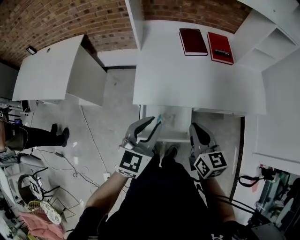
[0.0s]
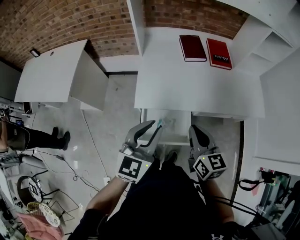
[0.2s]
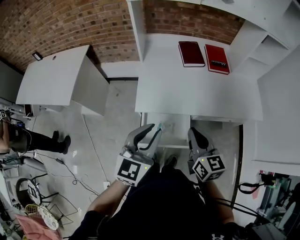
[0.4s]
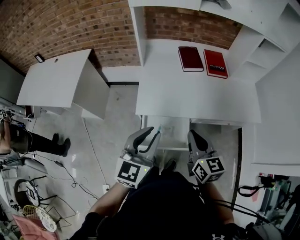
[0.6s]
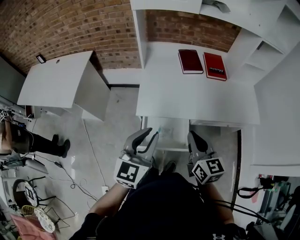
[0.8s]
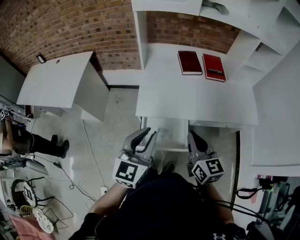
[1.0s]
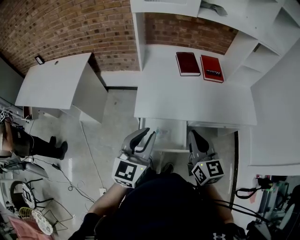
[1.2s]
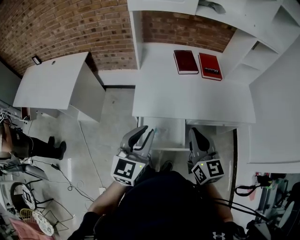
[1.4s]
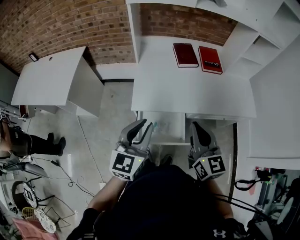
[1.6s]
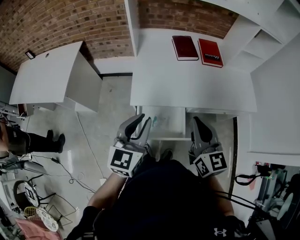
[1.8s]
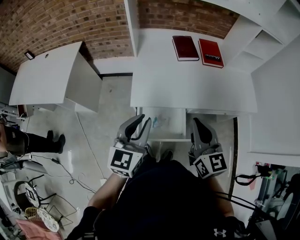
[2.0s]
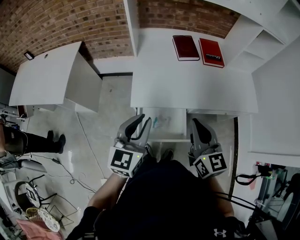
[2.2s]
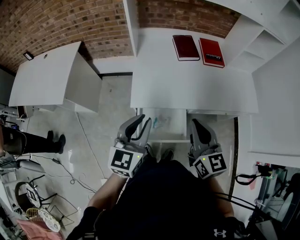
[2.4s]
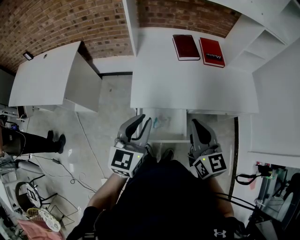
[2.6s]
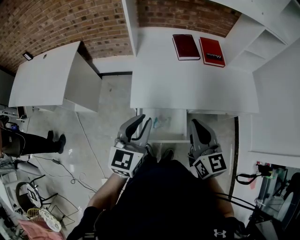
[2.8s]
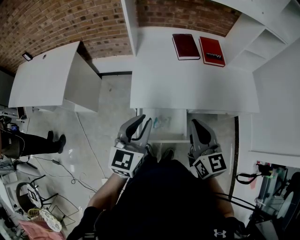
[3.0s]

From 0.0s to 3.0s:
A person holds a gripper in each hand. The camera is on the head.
From 0.0s to 1.6s: The right gripper goes about 10 cm upward. Meanwhile the left gripper shifts approximately 5 cm upward.
From 1.6s to 3.0s: The grippers stay close to where they were, moving slightly.

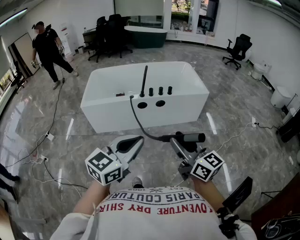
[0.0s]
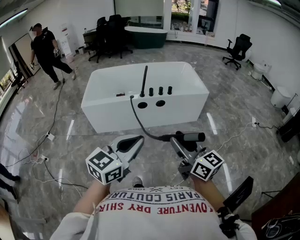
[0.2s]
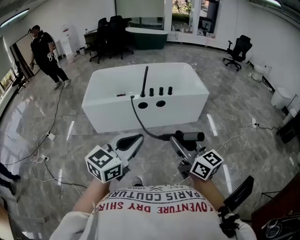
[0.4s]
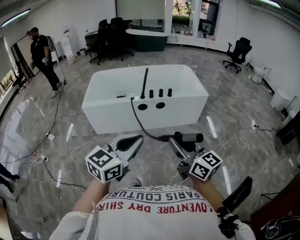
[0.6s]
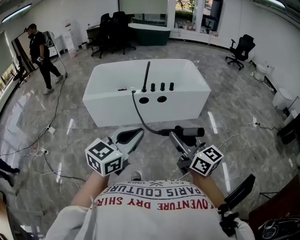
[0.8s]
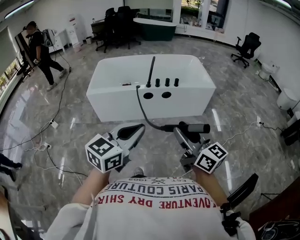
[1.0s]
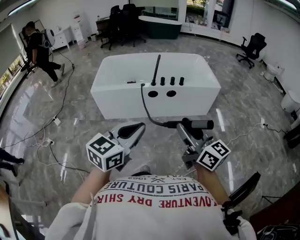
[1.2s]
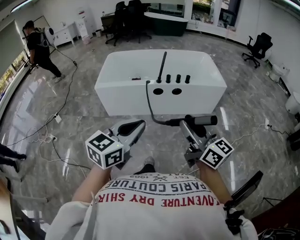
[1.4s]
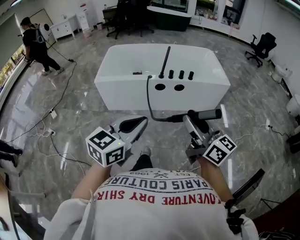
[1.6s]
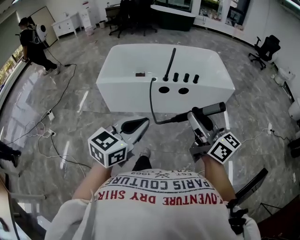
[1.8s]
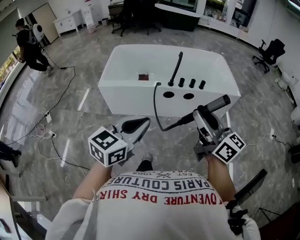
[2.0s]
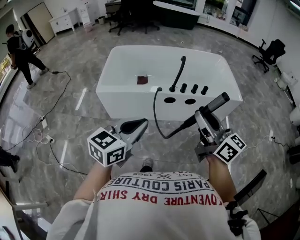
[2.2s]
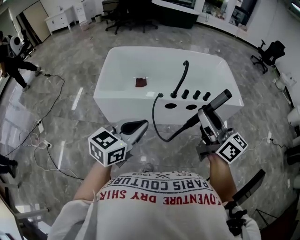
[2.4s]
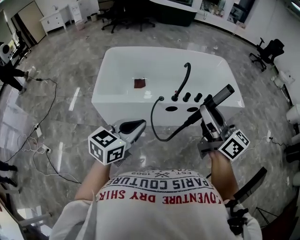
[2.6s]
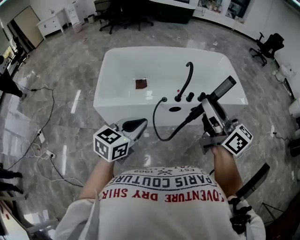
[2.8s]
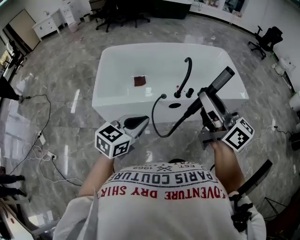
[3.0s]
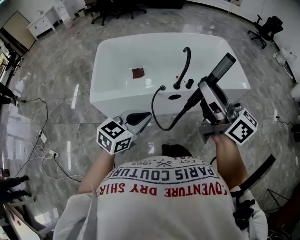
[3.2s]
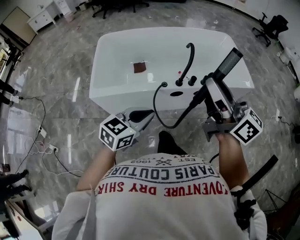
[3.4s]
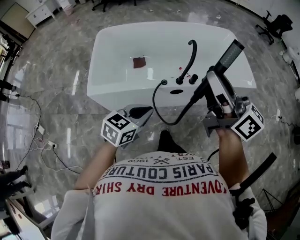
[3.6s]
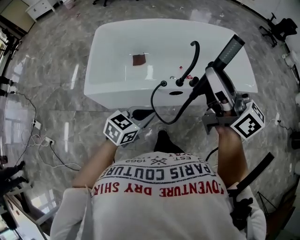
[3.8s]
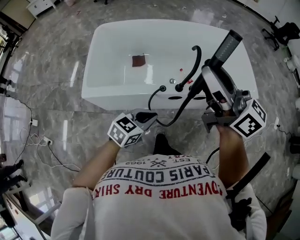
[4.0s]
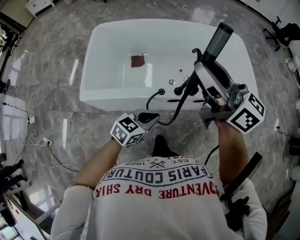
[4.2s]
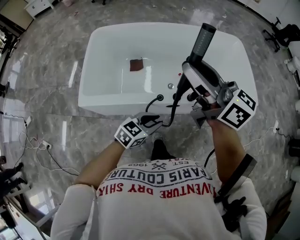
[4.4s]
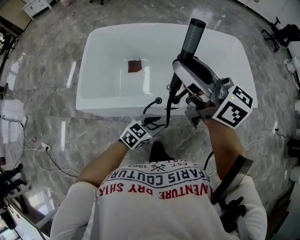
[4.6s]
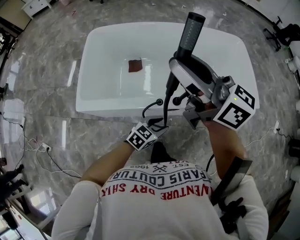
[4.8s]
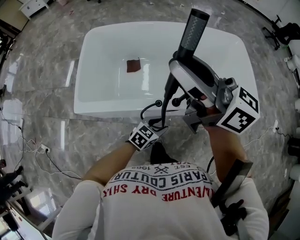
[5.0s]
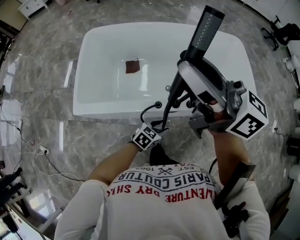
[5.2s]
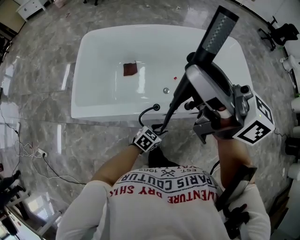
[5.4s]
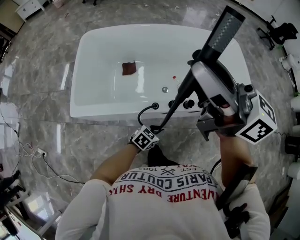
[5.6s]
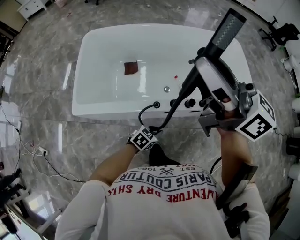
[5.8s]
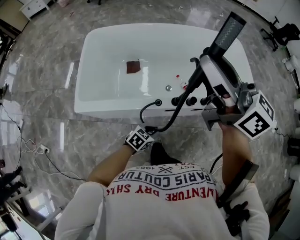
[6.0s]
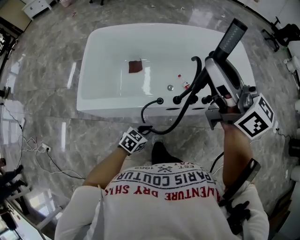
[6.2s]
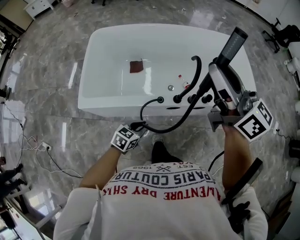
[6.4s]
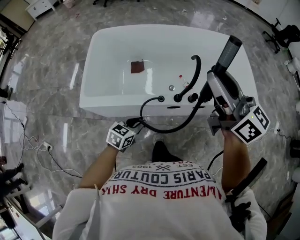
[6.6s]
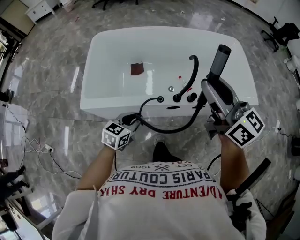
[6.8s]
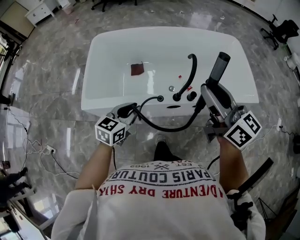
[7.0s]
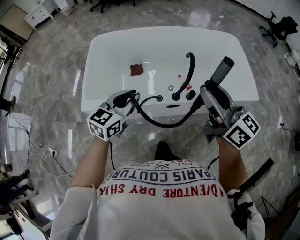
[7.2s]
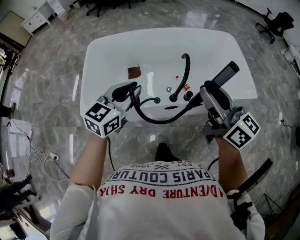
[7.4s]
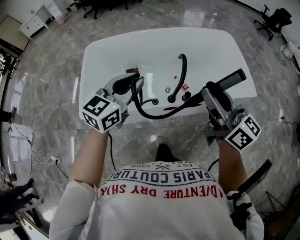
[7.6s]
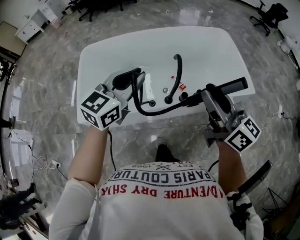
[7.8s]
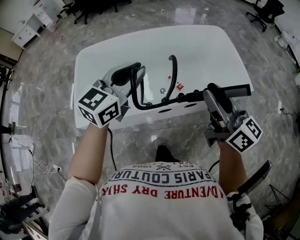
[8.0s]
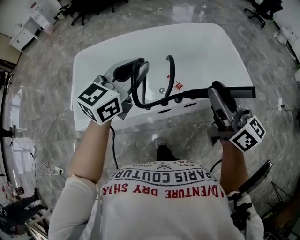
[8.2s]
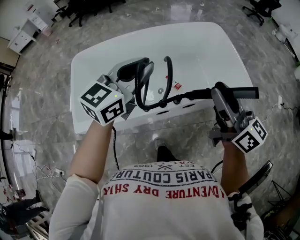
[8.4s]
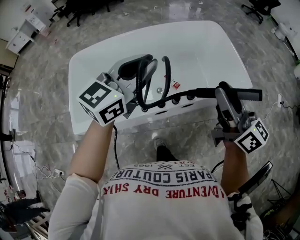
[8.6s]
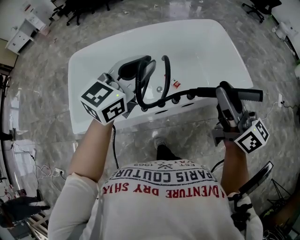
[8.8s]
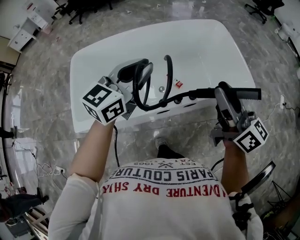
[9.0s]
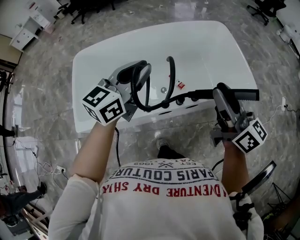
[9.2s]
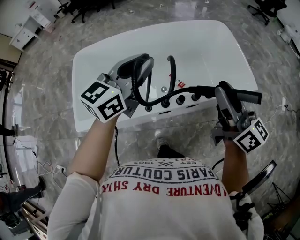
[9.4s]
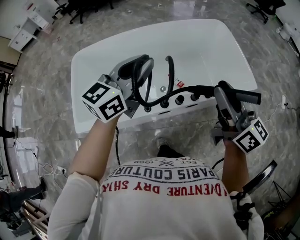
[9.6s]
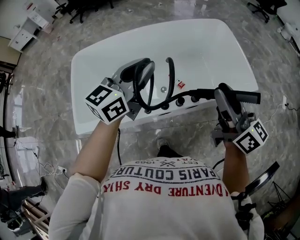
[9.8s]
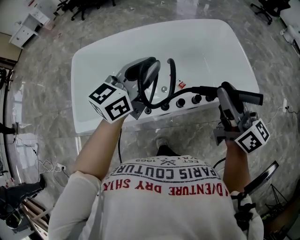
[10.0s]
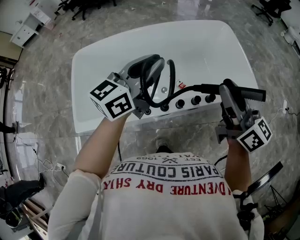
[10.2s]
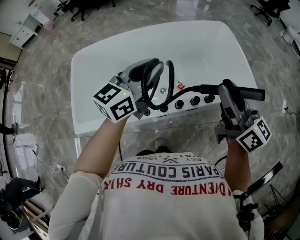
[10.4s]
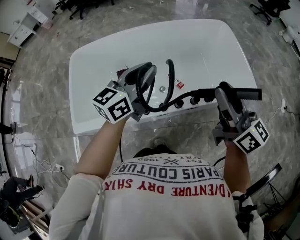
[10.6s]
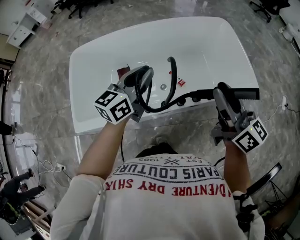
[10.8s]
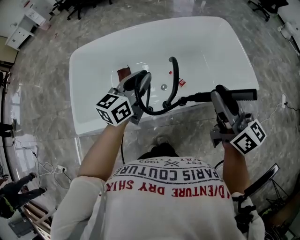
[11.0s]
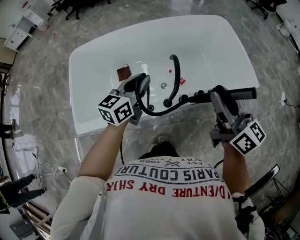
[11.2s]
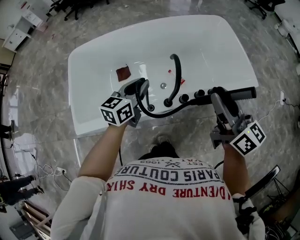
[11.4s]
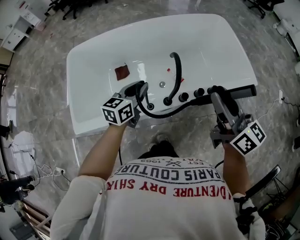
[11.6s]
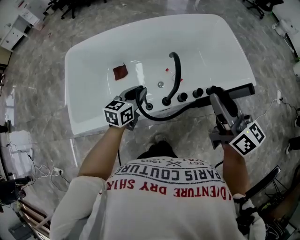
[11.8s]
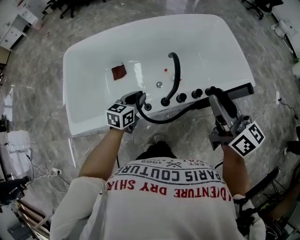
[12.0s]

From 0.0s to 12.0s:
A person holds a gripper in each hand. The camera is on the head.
From 0.0s to 1.6s: The left gripper moves about 5 cm.
From 1.6s to 3.0s: Both grippers move forward and to the left, approximately 35 cm.
From 3.0s to 4.4s: The left gripper heads downward, forward and to the right, covering roughly 25 cm, and opens its fingers. Meanwhile the right gripper shifts some 25 cm forward.
From 4.4s to 6.0s: The right gripper travels upward by roughly 5 cm. The left gripper moves downward, roughly 15 cm, and opens, then closes once more.
From 6.0s to 7.6s: The left gripper is displaced upward and forward by about 40 cm, and points its fingers approximately 30 degrees further upward. The right gripper heads to the right, downward and backward, covering approximately 15 cm.
From 7.6s to 9.0s: The right gripper is displaced to the right and forward by roughly 10 cm. Meanwhile the left gripper travels forward and to the right by approximately 15 cm.
From 9.0s to 10.4s: There are only small adjustments of the grippers.
From 10.4s to 12.0s: The right gripper moves approximately 5 cm; the left gripper is displaced downward by roughly 25 cm, and changes its angle by some 30 degrees.

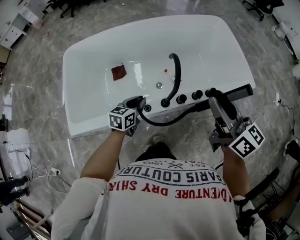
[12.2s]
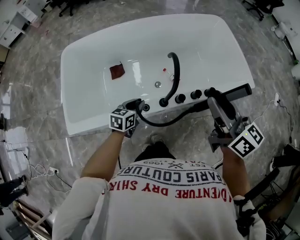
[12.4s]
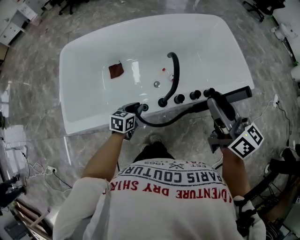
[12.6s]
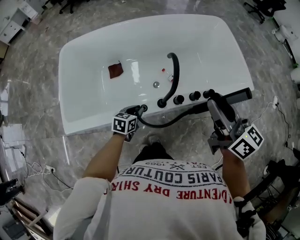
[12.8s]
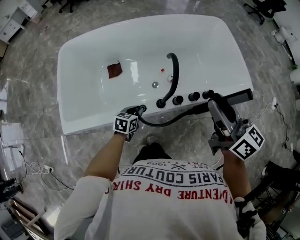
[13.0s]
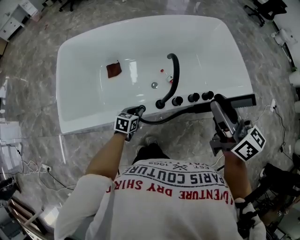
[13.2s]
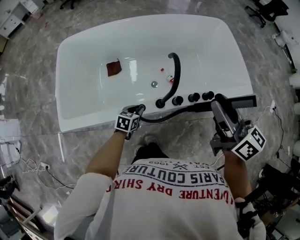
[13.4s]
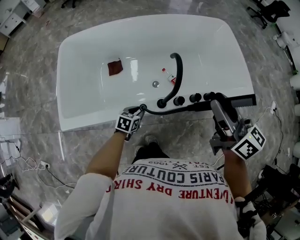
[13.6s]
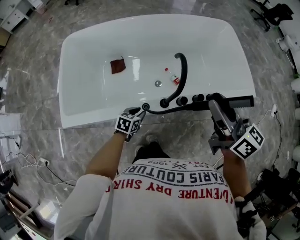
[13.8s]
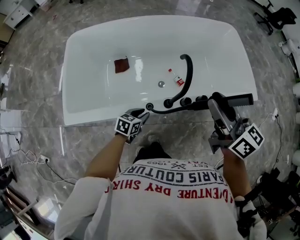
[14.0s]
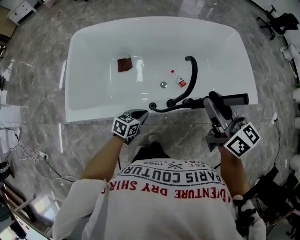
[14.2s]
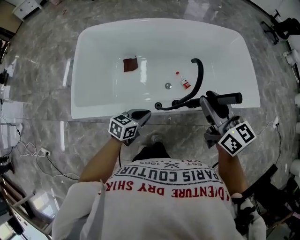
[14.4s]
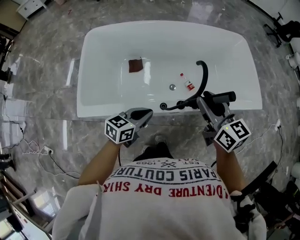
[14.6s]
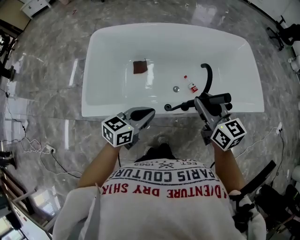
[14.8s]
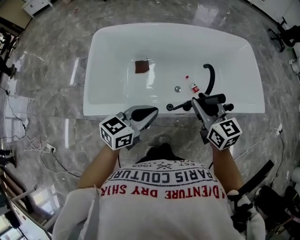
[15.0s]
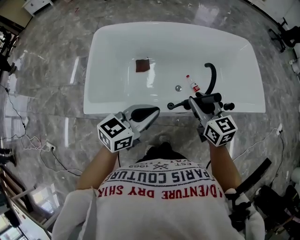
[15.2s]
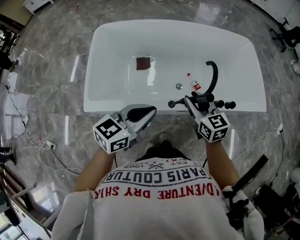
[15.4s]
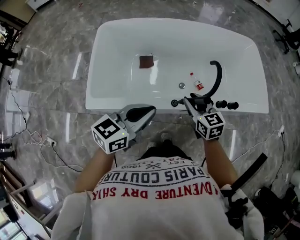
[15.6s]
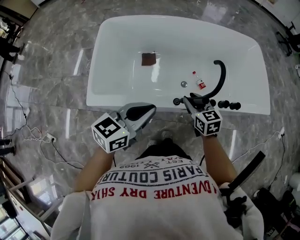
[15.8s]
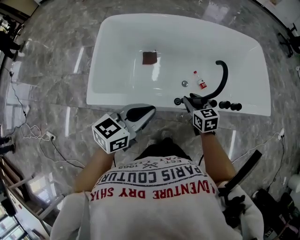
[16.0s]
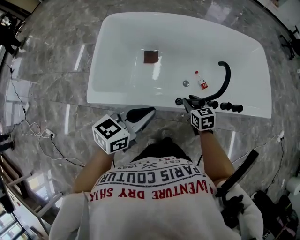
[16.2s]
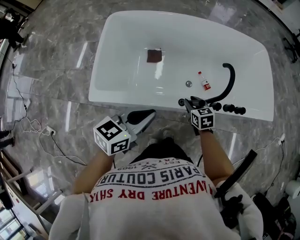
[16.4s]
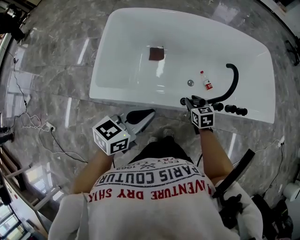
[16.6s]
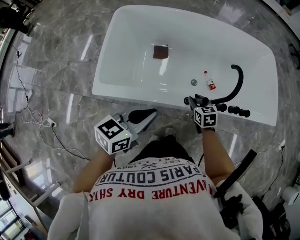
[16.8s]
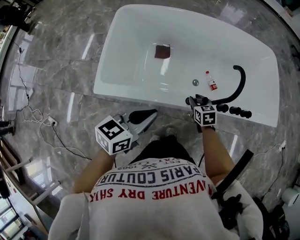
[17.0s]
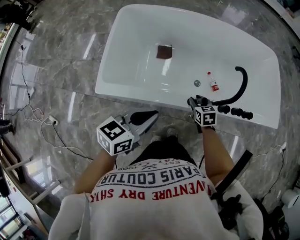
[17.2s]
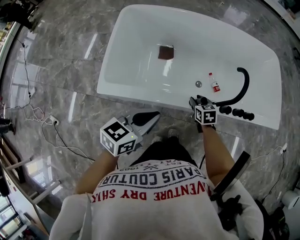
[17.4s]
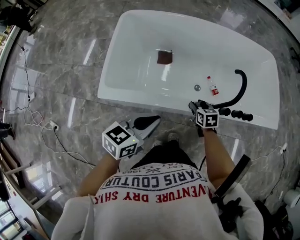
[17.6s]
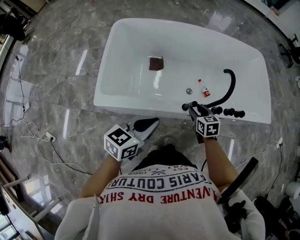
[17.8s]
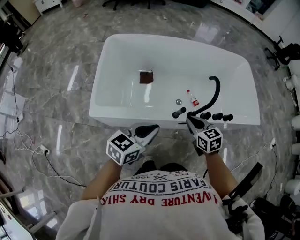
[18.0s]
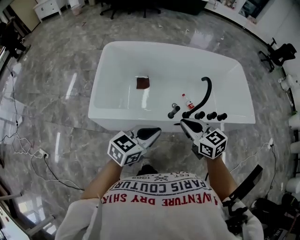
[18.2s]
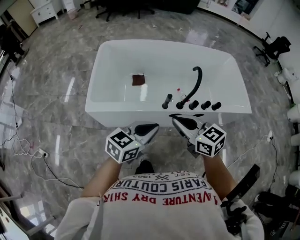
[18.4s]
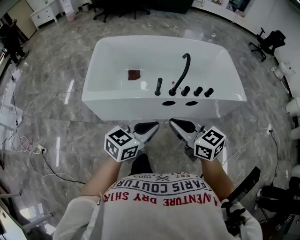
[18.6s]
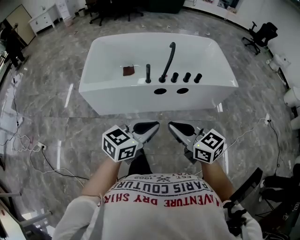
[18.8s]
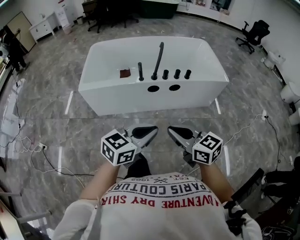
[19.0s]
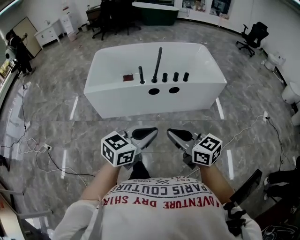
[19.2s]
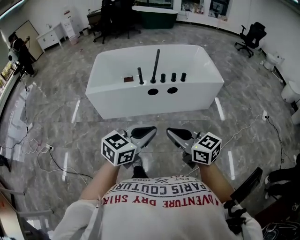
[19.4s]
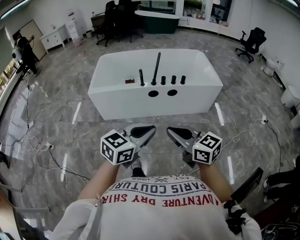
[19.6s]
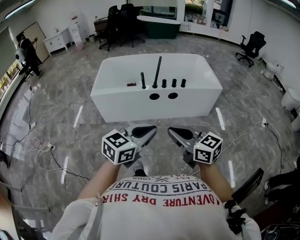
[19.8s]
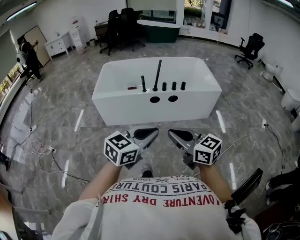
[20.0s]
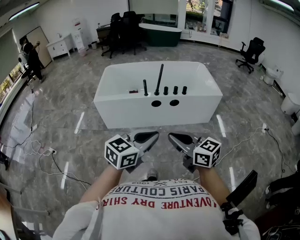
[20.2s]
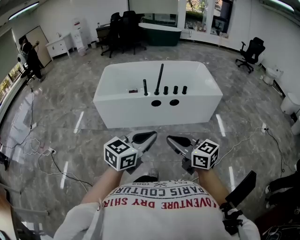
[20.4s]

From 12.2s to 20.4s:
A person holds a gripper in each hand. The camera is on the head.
From 12.2s to 13.8s: The left gripper shifts approximately 15 cm downward and backward.
From 13.8s to 15.4s: The right gripper heads to the left and downward, covering some 20 cm, and turns by approximately 30 degrees, while the left gripper moves upward, about 30 cm, tips its fingers upward by roughly 30 degrees, and closes its fingers.
From 15.4s to 17.2s: The left gripper moves downward and to the left, approximately 10 cm, while the right gripper goes roughly 25 cm downward, and turns by approximately 20 degrees.
From 17.2s to 18.8s: The right gripper travels backward and upward by some 50 cm, points its fingers some 30 degrees further upward, and closes up; the left gripper shifts about 35 cm backward and to the right.
From 18.8s to 20.4s: The left gripper heads backward and upward, covering roughly 25 cm, while the right gripper is displaced backward by about 25 cm.
